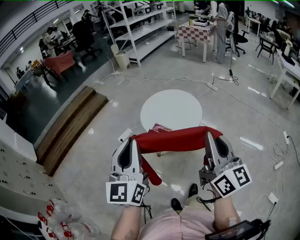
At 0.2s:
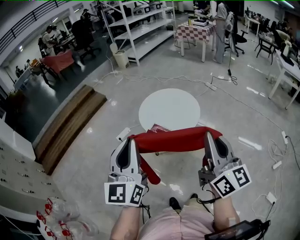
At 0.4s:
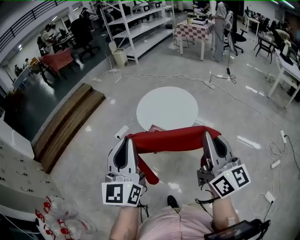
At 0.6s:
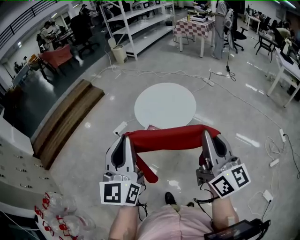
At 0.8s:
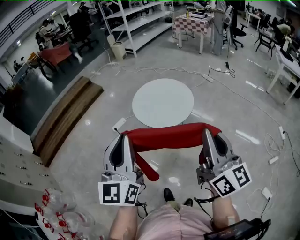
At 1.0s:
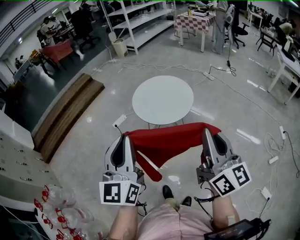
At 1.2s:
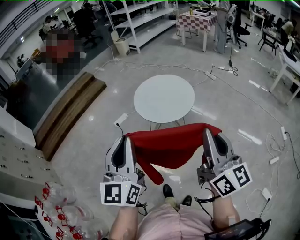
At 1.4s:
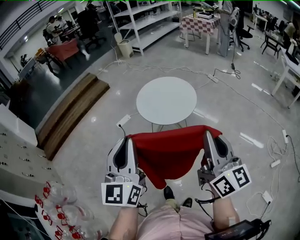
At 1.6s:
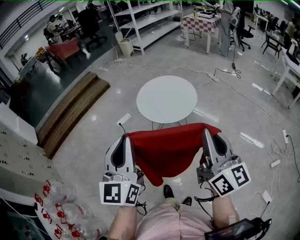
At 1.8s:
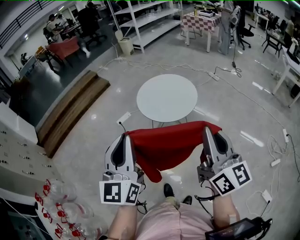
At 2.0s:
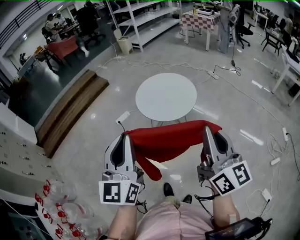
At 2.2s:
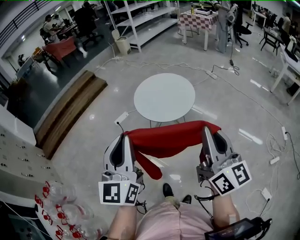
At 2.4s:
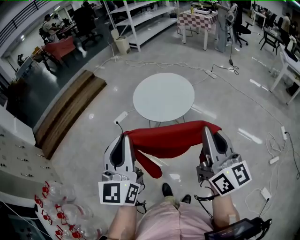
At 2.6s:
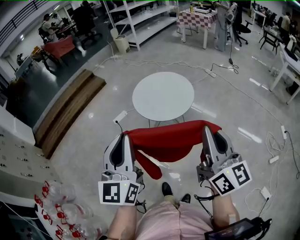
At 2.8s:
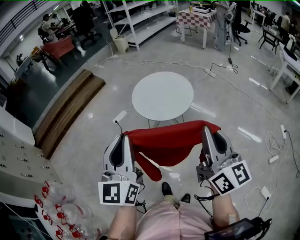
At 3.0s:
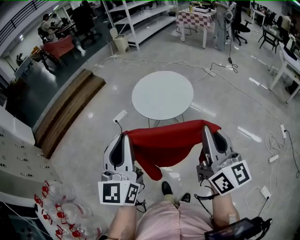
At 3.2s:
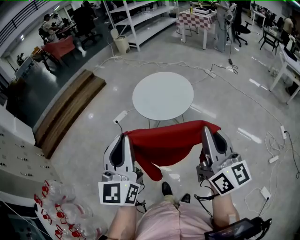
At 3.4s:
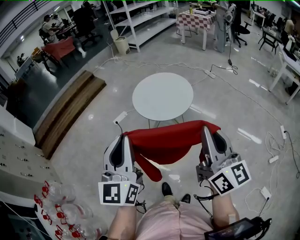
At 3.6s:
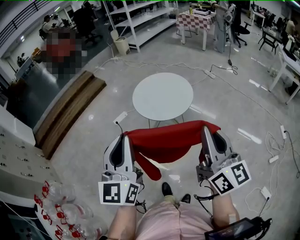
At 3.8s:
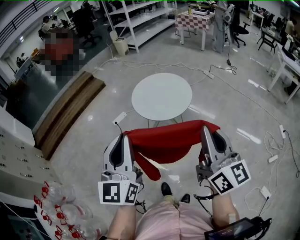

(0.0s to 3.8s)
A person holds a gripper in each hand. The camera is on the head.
0.0s - 1.2s: Both grippers move backward and to the right, roughly 10 cm.
1.2s - 2.6s: Both grippers stay about where they are.
2.6s - 3.8s: The grippers make only small movements.

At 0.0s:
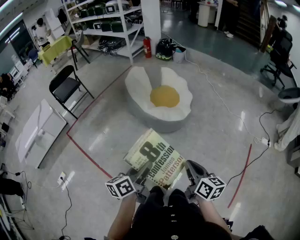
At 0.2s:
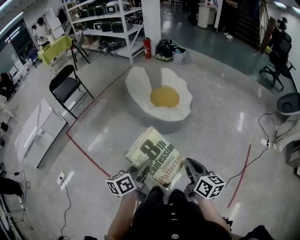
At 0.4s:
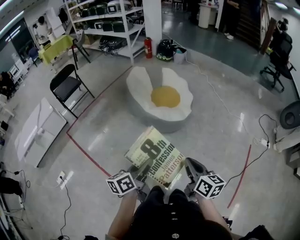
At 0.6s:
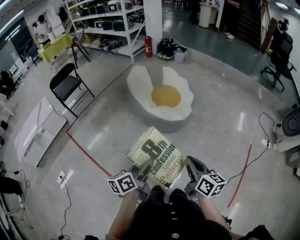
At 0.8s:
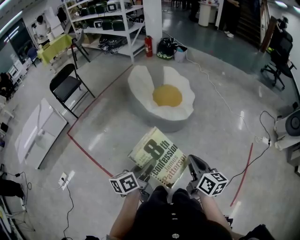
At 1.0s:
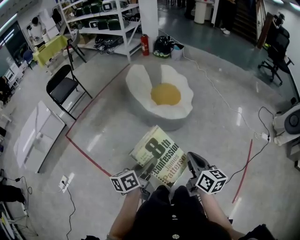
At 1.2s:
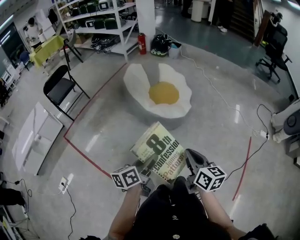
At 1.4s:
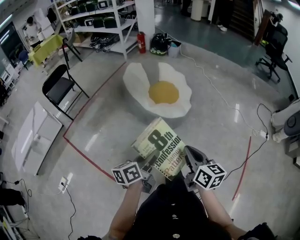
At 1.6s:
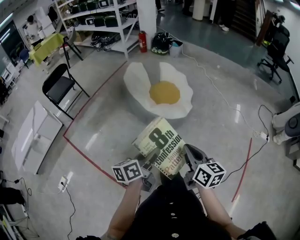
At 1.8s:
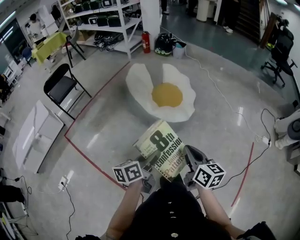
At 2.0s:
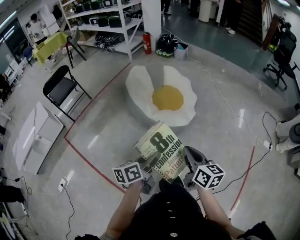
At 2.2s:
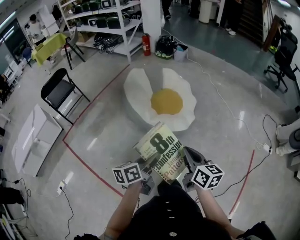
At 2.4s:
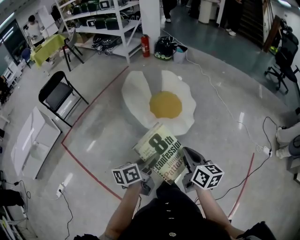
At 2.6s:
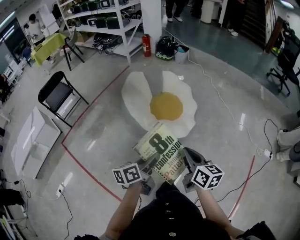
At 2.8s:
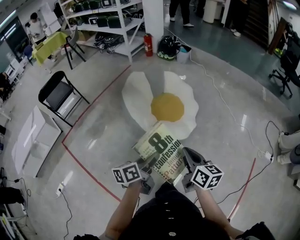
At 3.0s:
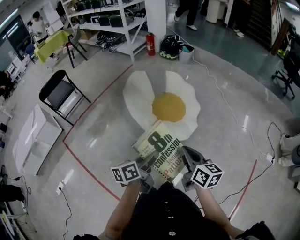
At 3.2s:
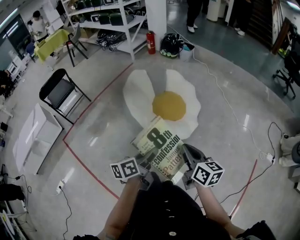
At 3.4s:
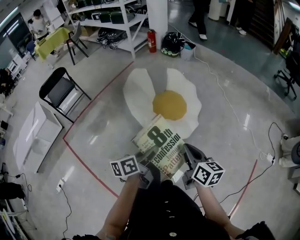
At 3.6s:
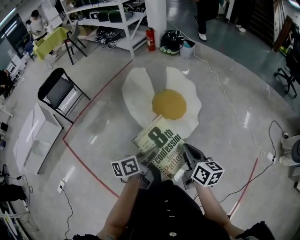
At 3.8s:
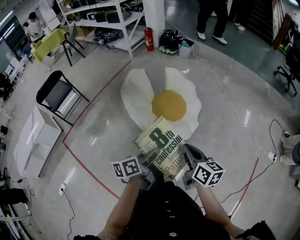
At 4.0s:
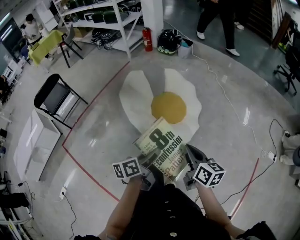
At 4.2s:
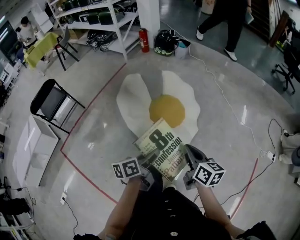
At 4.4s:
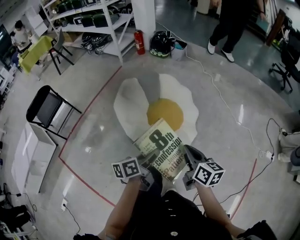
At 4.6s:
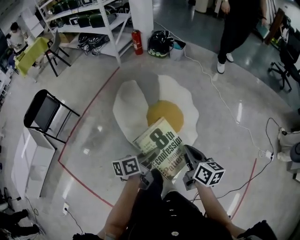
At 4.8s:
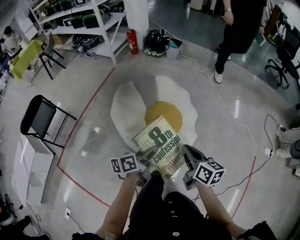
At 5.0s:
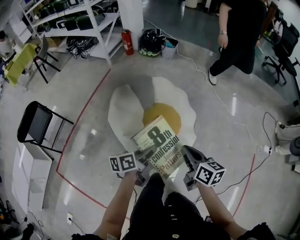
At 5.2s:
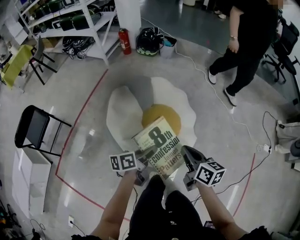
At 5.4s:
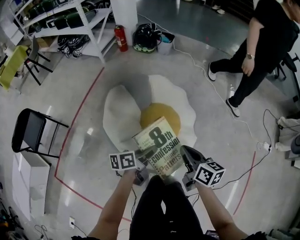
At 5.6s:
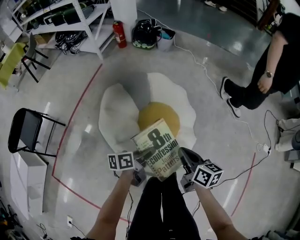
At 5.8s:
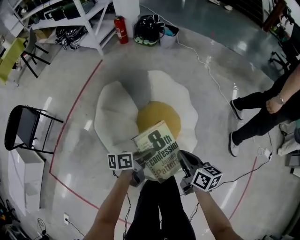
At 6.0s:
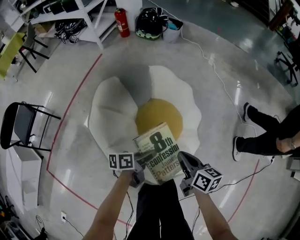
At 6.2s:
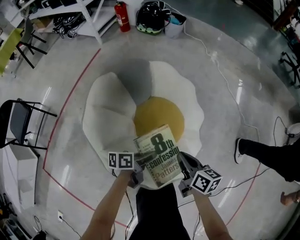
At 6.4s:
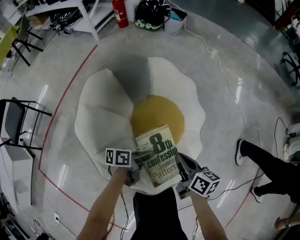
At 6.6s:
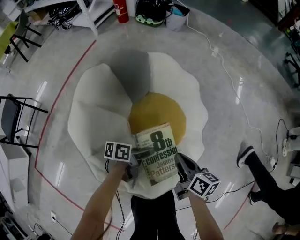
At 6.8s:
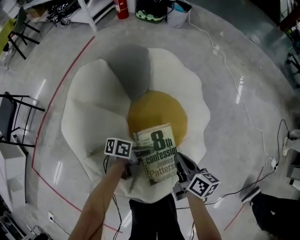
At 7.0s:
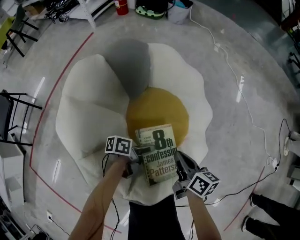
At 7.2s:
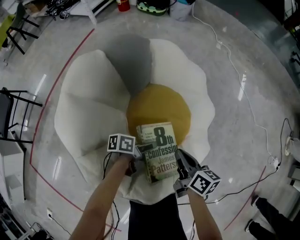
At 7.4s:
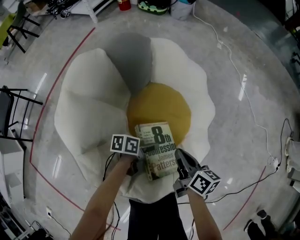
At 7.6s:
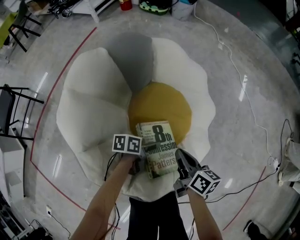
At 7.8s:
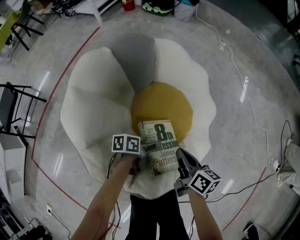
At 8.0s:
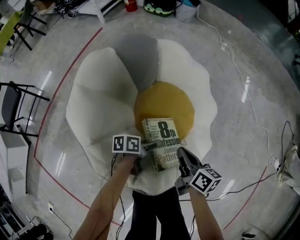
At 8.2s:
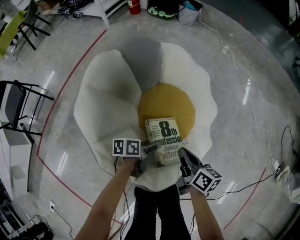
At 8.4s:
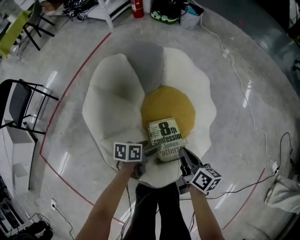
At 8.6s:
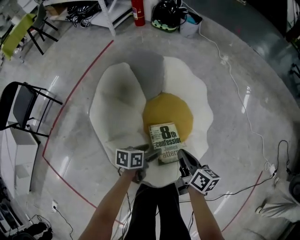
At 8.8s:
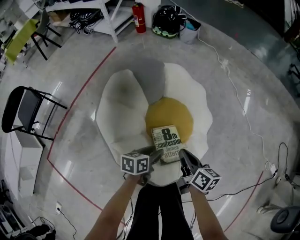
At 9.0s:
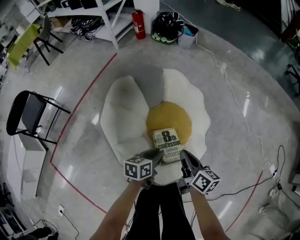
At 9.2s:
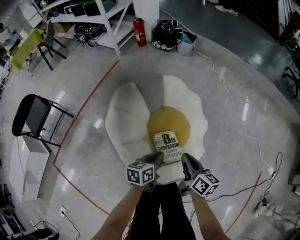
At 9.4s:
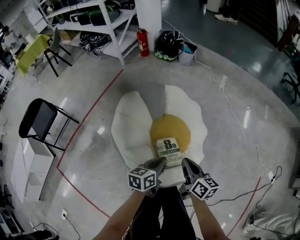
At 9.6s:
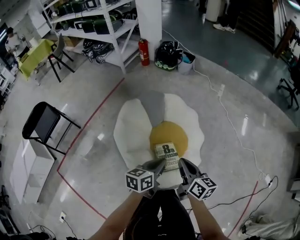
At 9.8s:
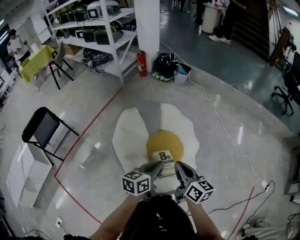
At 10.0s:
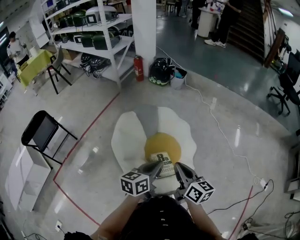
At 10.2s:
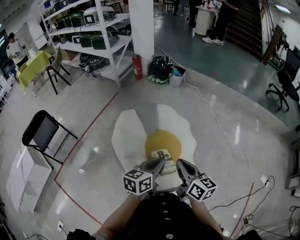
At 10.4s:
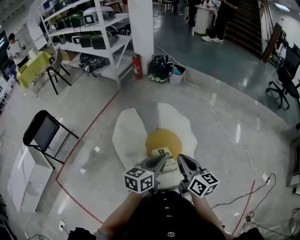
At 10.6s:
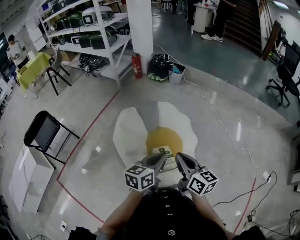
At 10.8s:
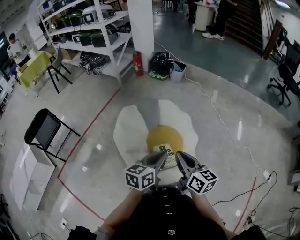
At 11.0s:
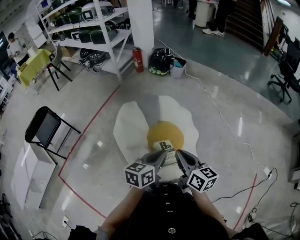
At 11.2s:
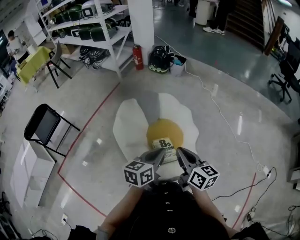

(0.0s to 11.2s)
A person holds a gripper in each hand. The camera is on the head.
0.0s - 1.6s: The left gripper shifts approximately 10 cm forward, while the right gripper is displaced to the left and forward by roughly 10 cm.
1.6s - 3.2s: Both grippers travel together forward, approximately 25 cm.
3.2s - 4.8s: The grippers both shift forward by roughly 25 cm.
4.8s - 6.4s: Both grippers move downward and forward, about 35 cm. The left gripper swivels about 20 degrees.
6.4s - 8.0s: Both grippers travel together downward, about 10 cm. The left gripper opens.
8.0s - 9.6s: The two grippers go approximately 40 cm upward. The left gripper changes its angle by some 40 degrees, and closes.
9.6s - 11.2s: The left gripper travels upward by approximately 10 cm, while the right gripper goes about 10 cm upward and backward.

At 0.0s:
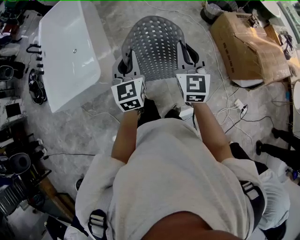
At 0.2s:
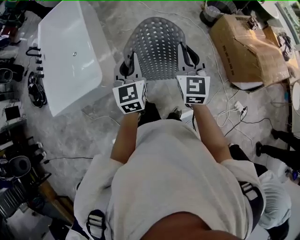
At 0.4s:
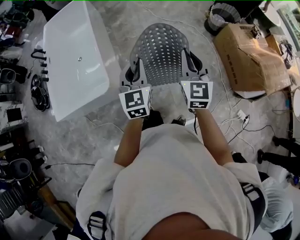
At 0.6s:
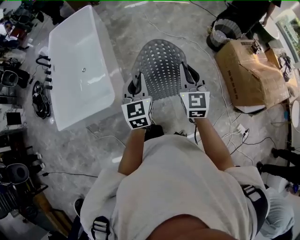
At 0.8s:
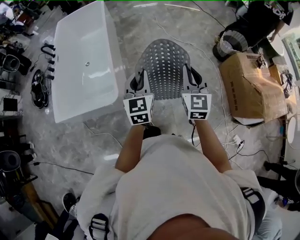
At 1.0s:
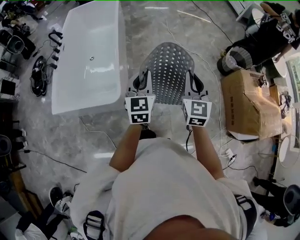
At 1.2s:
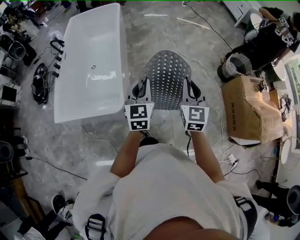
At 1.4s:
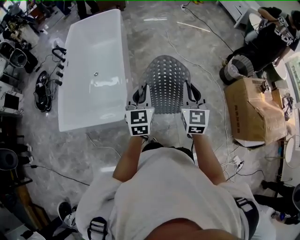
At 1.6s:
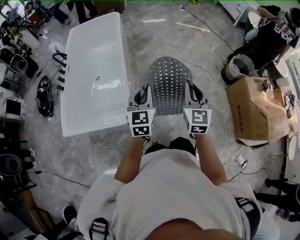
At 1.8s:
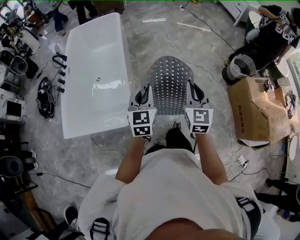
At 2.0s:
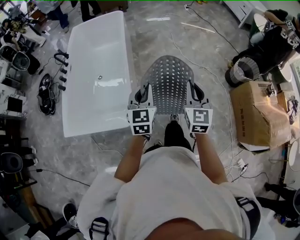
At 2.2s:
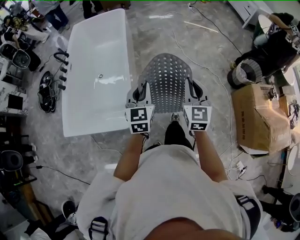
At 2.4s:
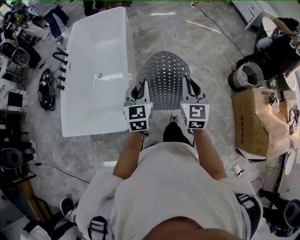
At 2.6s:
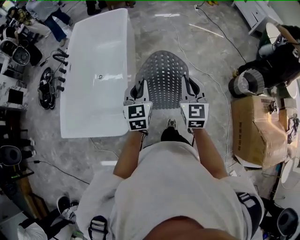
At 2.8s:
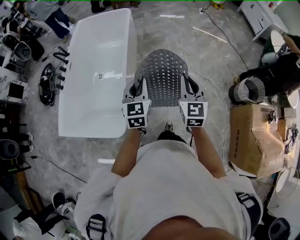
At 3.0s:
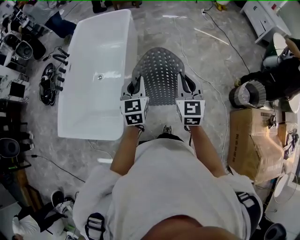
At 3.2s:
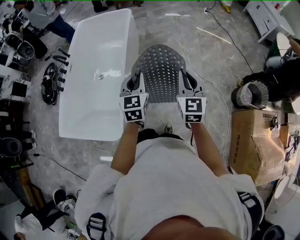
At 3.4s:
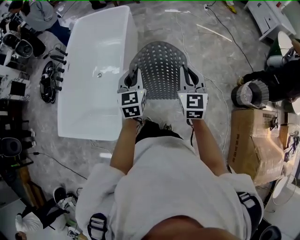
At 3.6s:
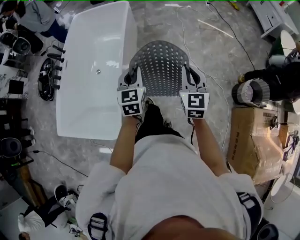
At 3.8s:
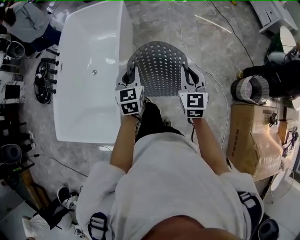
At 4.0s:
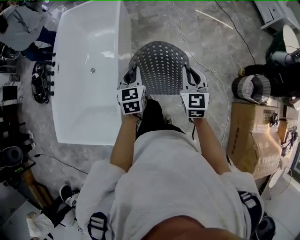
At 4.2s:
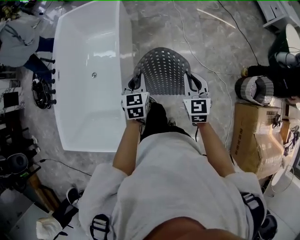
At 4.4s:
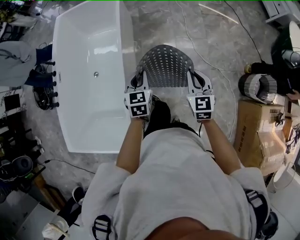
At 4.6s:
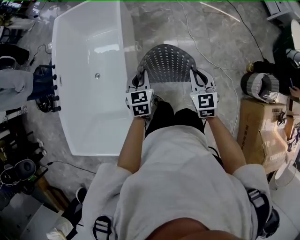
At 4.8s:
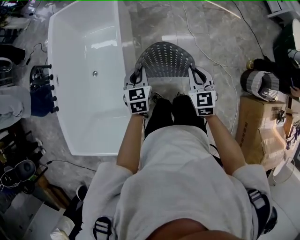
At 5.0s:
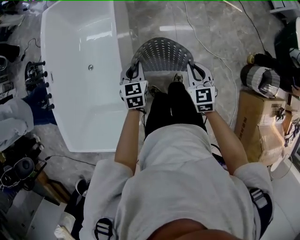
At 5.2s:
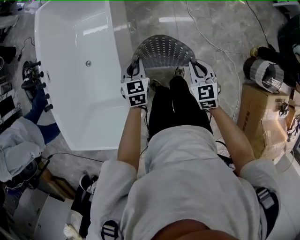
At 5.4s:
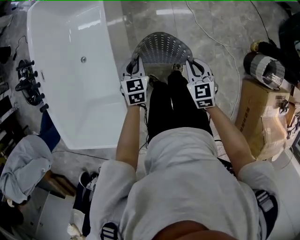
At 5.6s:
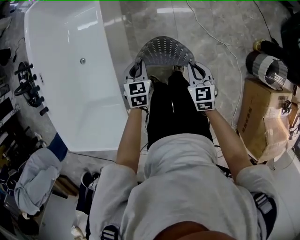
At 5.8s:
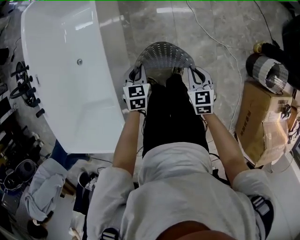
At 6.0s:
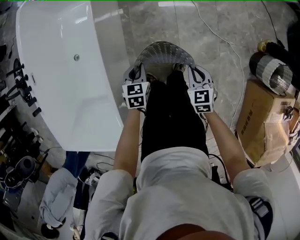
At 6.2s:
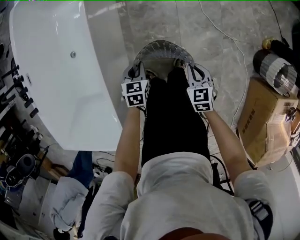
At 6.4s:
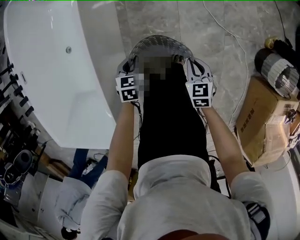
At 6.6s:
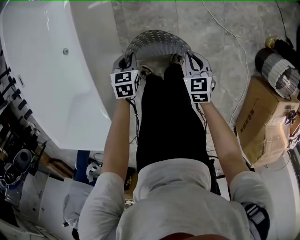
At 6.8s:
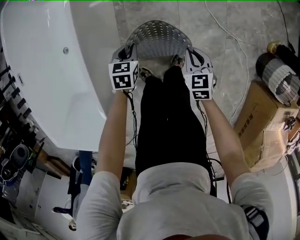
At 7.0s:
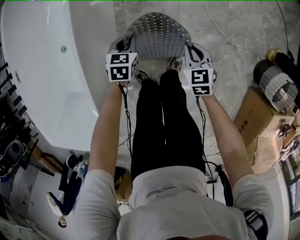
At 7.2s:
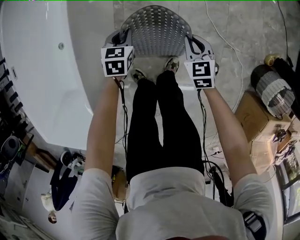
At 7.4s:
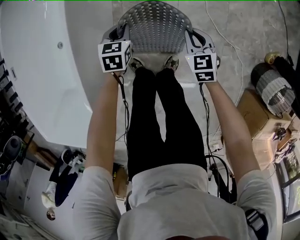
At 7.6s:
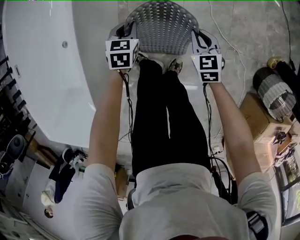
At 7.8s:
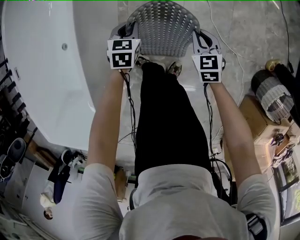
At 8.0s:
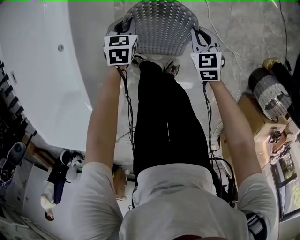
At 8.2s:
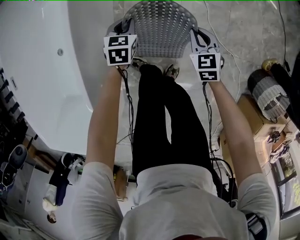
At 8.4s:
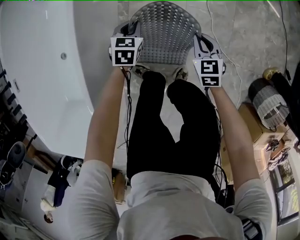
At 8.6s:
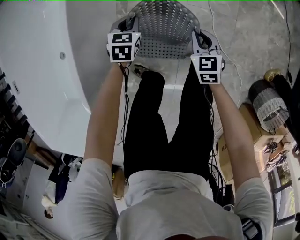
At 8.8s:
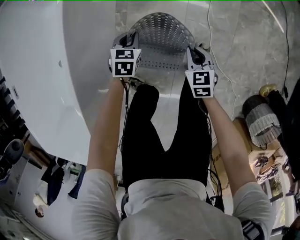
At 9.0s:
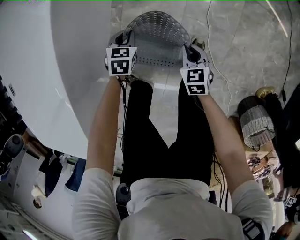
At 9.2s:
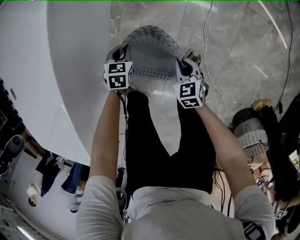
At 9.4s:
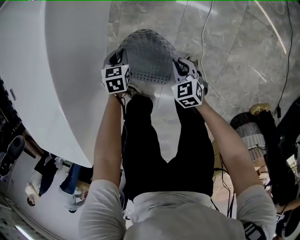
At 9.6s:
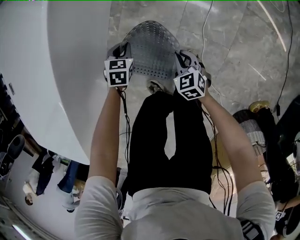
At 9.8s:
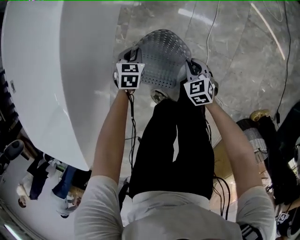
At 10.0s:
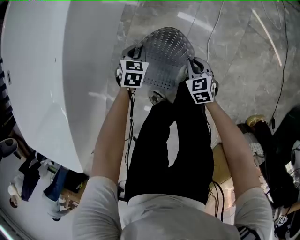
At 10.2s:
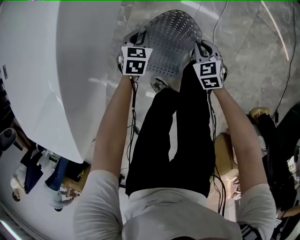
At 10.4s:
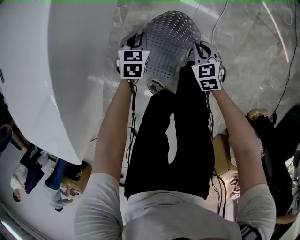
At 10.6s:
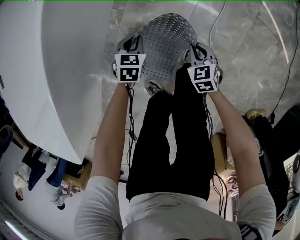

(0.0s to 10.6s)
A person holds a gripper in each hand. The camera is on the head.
0.0s - 1.6s: Both grippers travel together to the left and forward, some 25 cm.
1.6s - 3.0s: Both grippers move forward, some 25 cm.
3.0s - 4.6s: The grippers both shift forward and downward by some 30 cm.
4.6s - 6.0s: Both grippers travel together downward, about 25 cm.
6.0s - 7.6s: Both grippers move forward and downward, approximately 25 cm.
7.6s - 9.0s: The two grippers go approximately 20 cm forward and downward.
9.0s - 10.6s: The left gripper travels downward by roughly 5 cm, while the right gripper is displaced downward and forward by about 10 cm, and turns by approximately 20 degrees.
